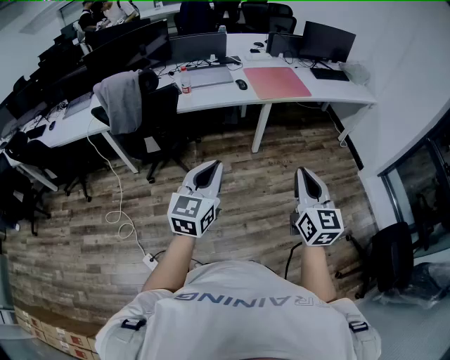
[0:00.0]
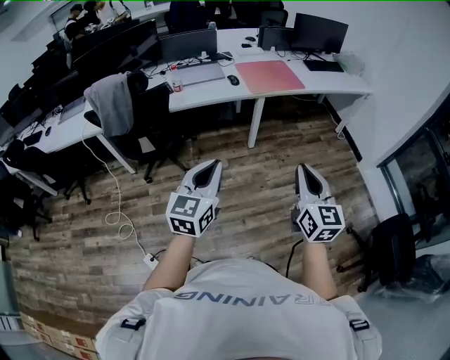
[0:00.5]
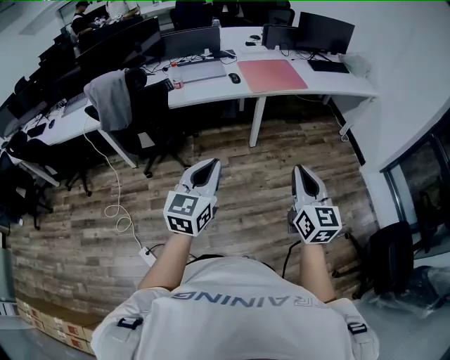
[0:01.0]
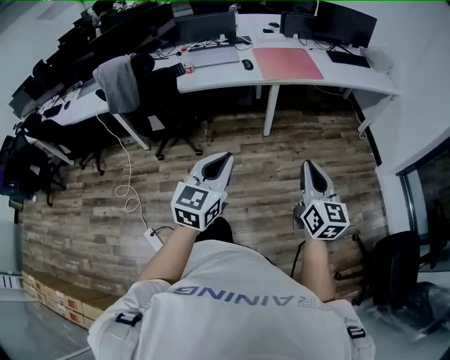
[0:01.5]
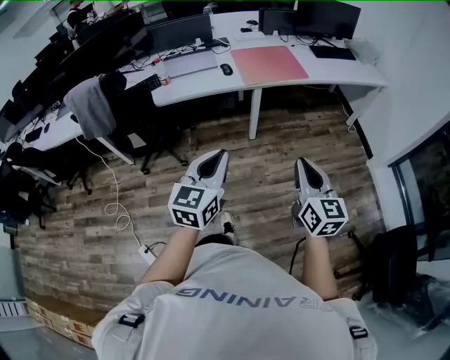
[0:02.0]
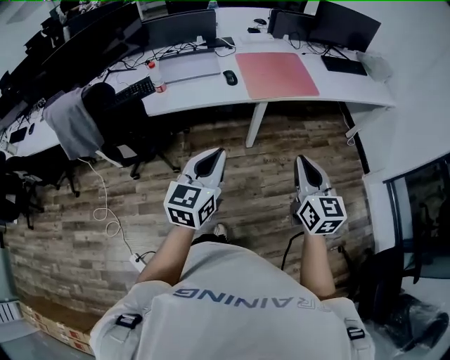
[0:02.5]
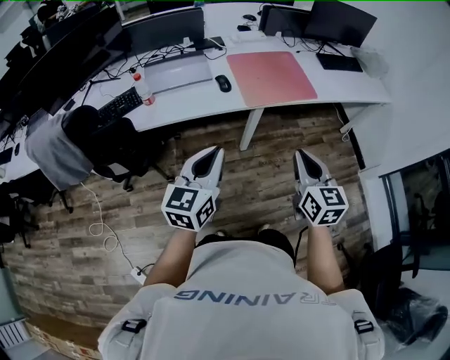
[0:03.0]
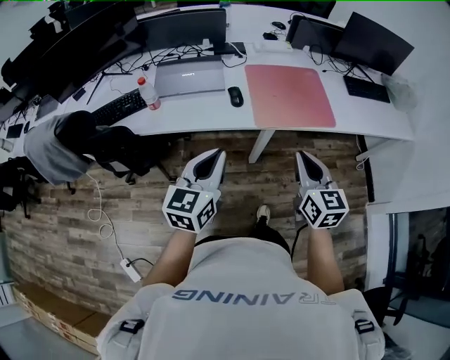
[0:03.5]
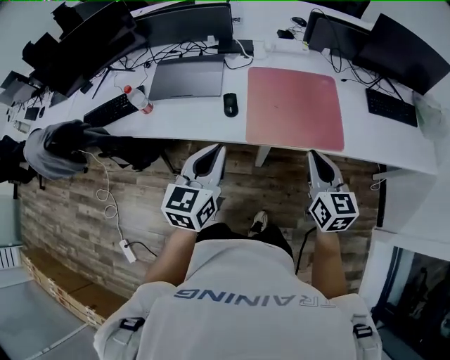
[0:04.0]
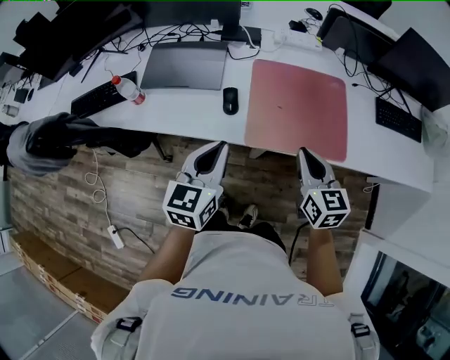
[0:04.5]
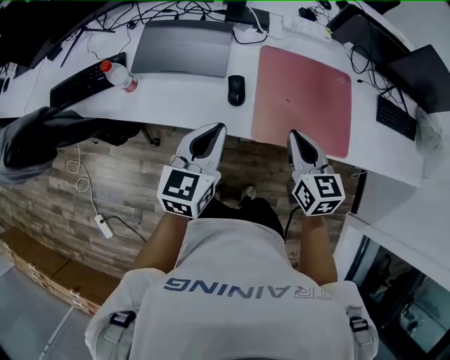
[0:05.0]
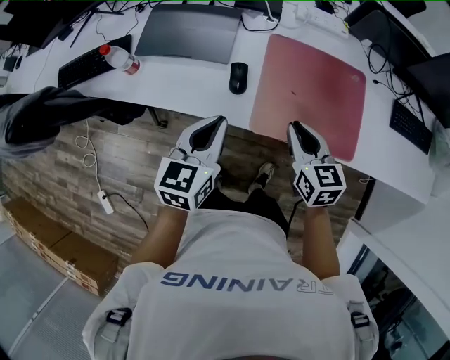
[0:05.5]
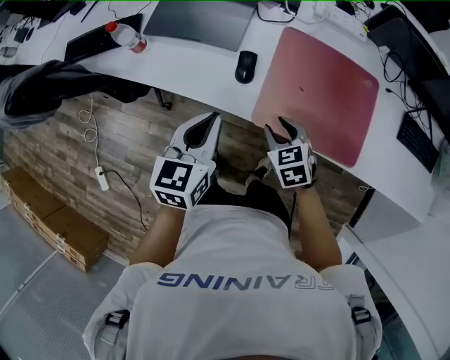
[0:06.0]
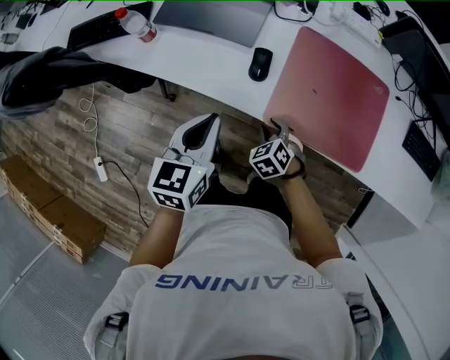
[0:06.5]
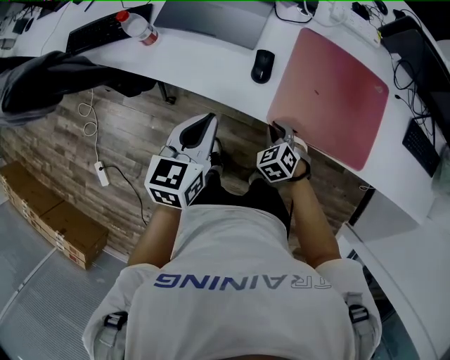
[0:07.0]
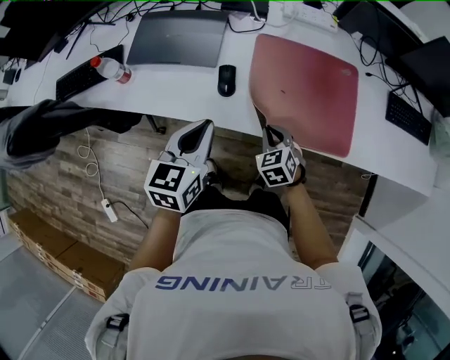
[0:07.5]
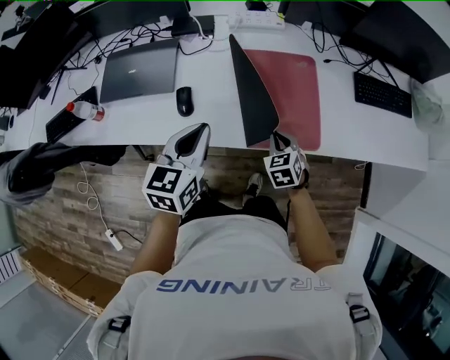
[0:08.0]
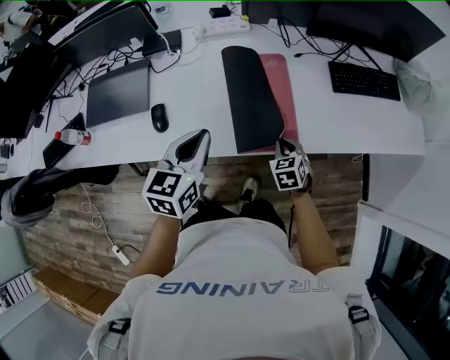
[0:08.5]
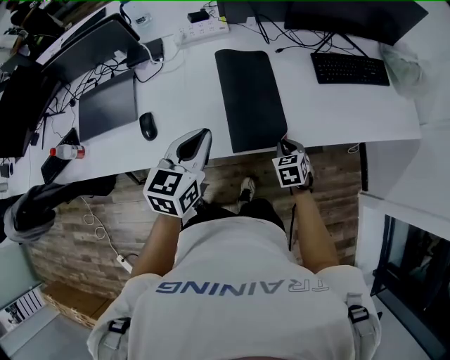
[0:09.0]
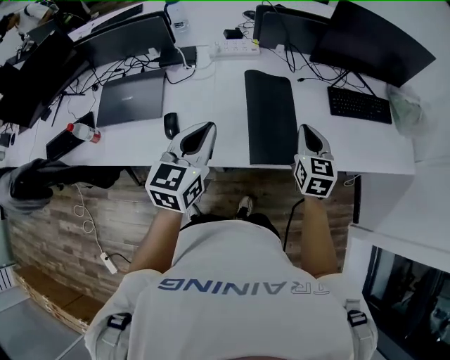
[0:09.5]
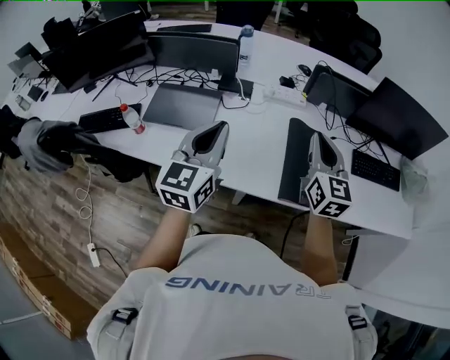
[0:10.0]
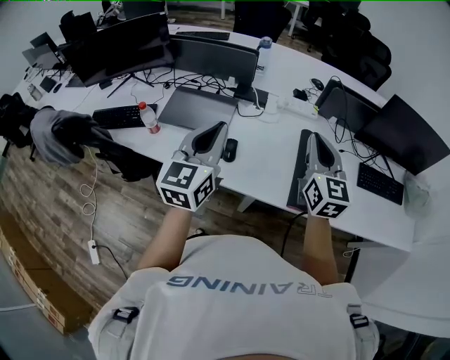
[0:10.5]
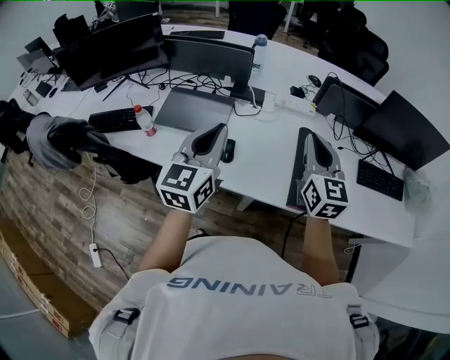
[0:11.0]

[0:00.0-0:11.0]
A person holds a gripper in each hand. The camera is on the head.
0:00.0 to 0:02.0: The grippers both shift to the right and forward by about 20 cm.
0:02.0 to 0:03.5: The two grippers go some 40 cm forward.
0:03.5 to 0:05.5: Both grippers move forward and downward, some 25 cm. The right gripper rotates some 30 degrees.
0:05.5 to 0:07.5: The right gripper is displaced downward by approximately 15 cm, rotates about 30 degrees, and opens and closes again.
0:07.5 to 0:09.0: The two grippers go some 30 cm to the right. The right gripper swivels about 30 degrees.
0:09.0 to 0:11.0: The right gripper moves upward and to the left, approximately 50 cm, and angles its fingers upward, by about 50 degrees. The left gripper moves to the left and upward, some 30 cm, and rotates roughly 30 degrees.

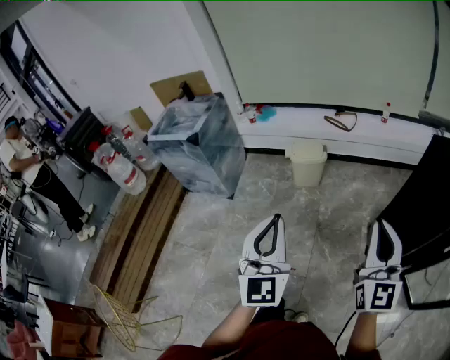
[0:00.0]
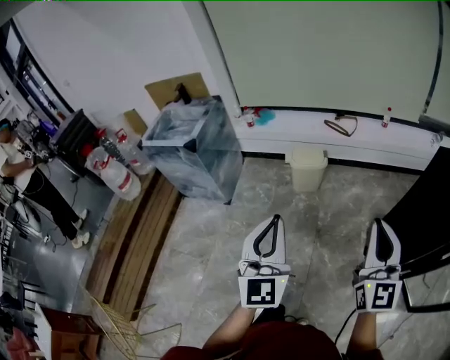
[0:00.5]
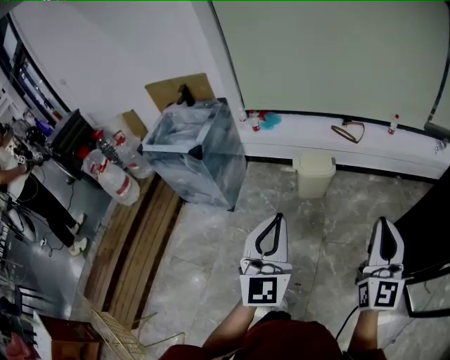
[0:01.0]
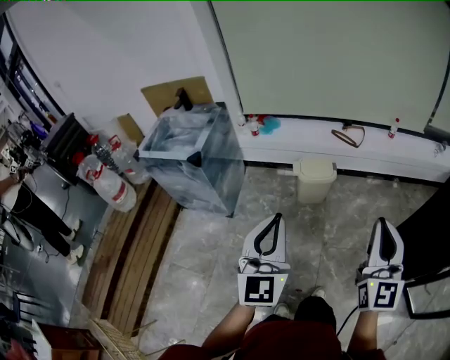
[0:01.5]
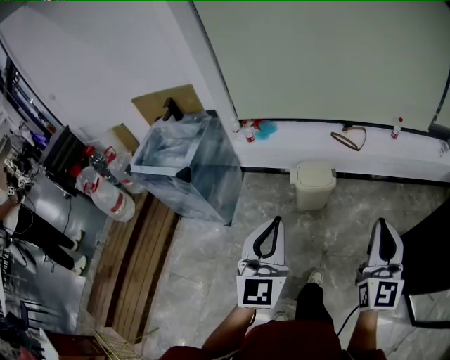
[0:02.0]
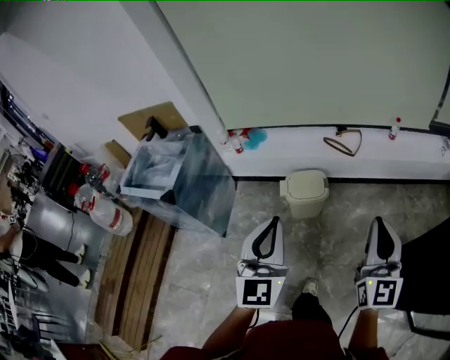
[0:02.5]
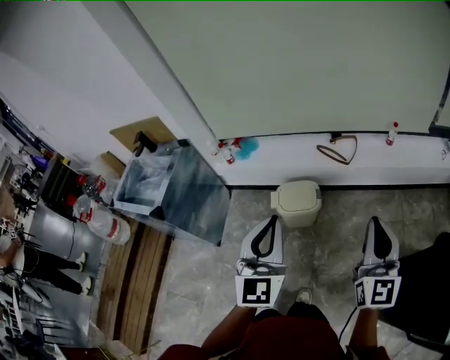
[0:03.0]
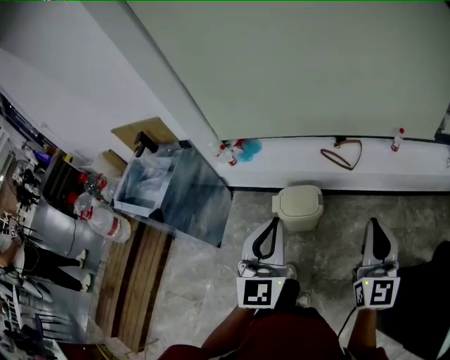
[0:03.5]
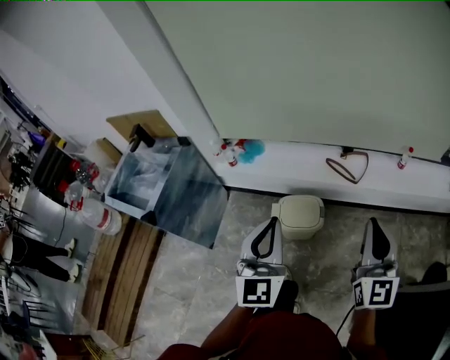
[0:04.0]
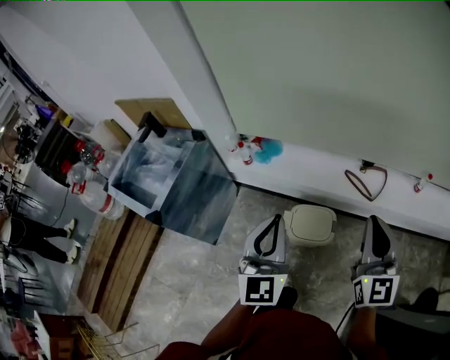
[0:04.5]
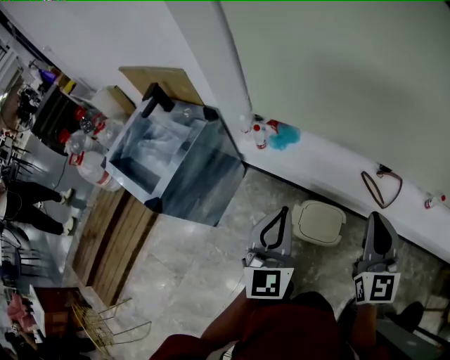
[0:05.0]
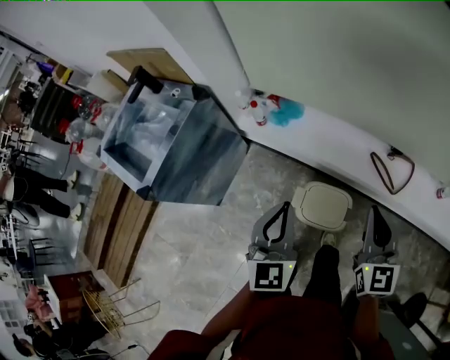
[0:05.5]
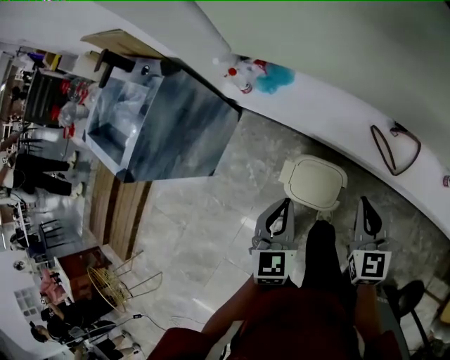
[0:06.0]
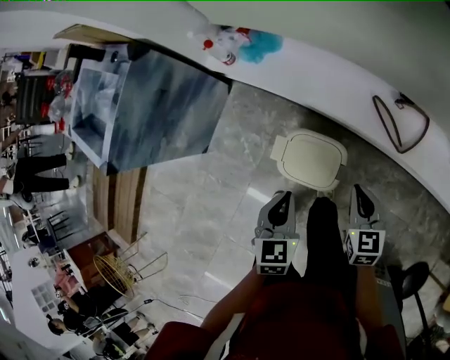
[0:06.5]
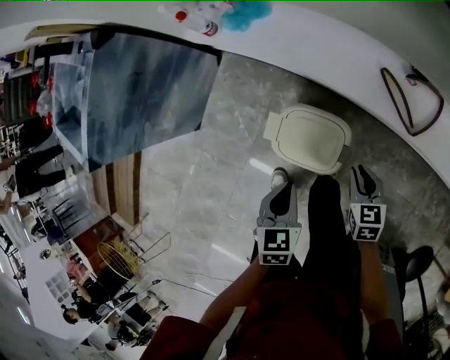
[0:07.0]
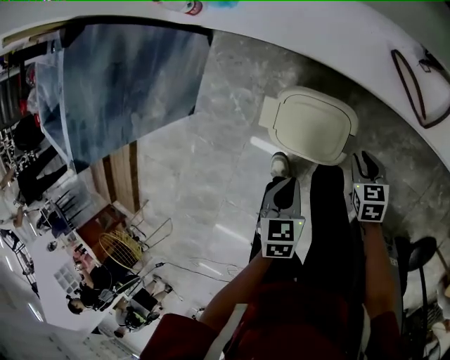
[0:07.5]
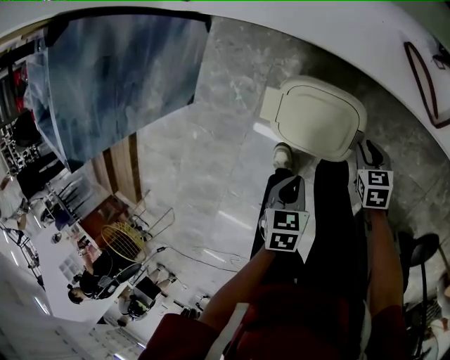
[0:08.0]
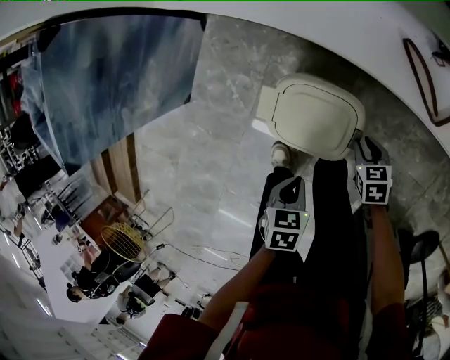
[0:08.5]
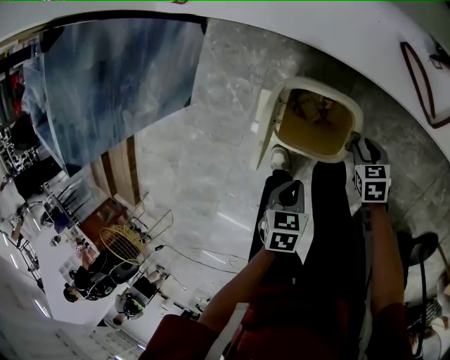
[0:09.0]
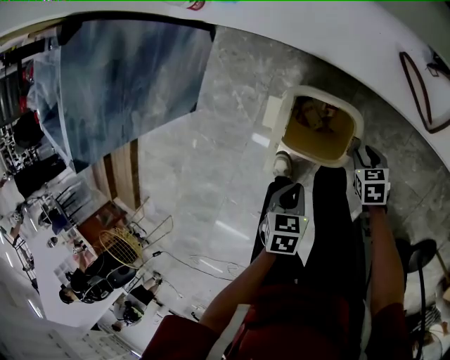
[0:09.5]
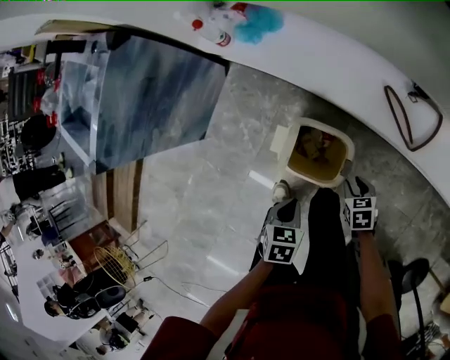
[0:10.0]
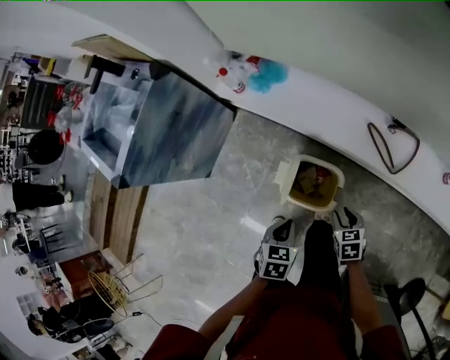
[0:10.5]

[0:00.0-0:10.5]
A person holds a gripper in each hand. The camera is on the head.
0:00.0 to 0:02.0: The two grippers go some 25 cm forward.
0:02.0 to 0:04.0: Both grippers travel together forward, approximately 30 cm.
0:04.0 to 0:06.5: Both grippers move downward and forward, some 40 cm. The right gripper tips its fingers downward by some 40 degrees; the left gripper points its fingers approximately 40 degrees further downward.
0:06.5 to 0:08.5: The left gripper heads downward and backward, covering some 25 cm, and points its fingers roughly 30 degrees further downward, while the right gripper travels downward by roughly 30 cm, turns by approximately 30 degrees, and opens its fingers.
0:08.5 to 0:10.5: The two grippers go roughly 20 cm upward.

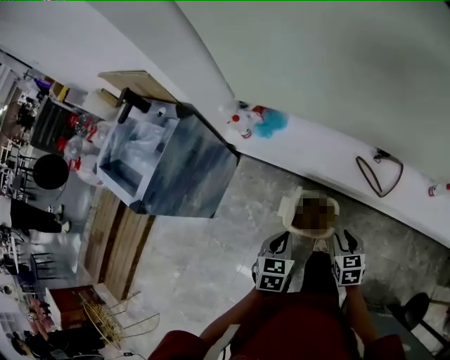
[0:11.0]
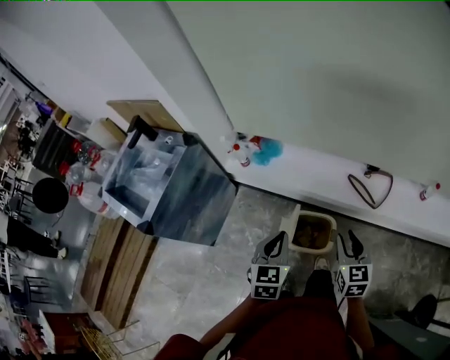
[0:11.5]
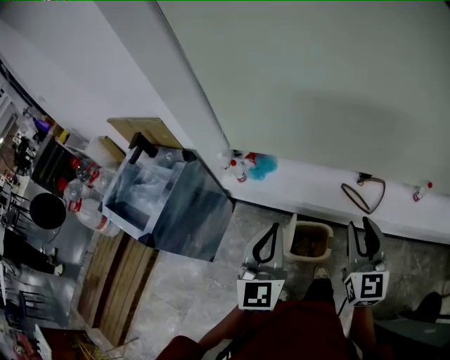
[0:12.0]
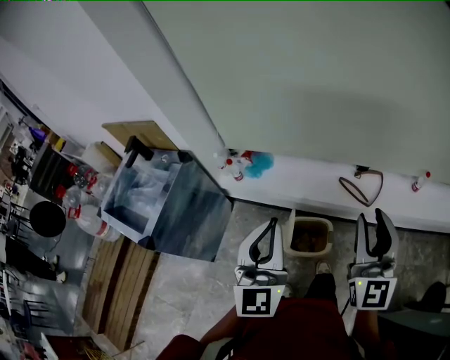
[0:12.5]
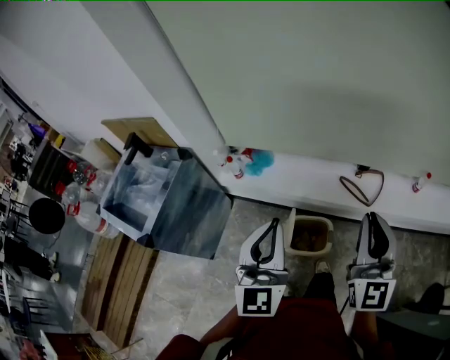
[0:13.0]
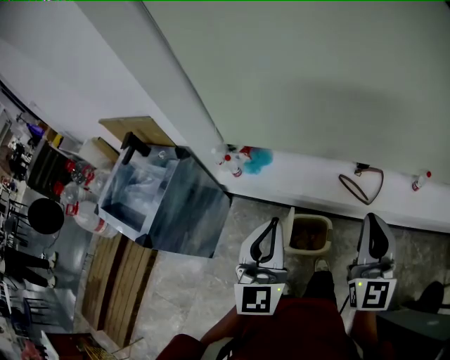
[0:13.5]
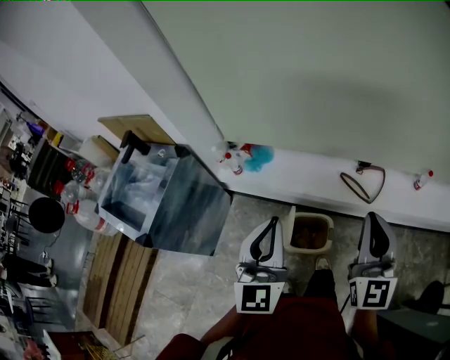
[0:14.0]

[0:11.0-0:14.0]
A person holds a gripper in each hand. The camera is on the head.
0:11.0 to 0:12.5: The two grippers go some 35 cm upward. The right gripper tips its fingers upward by approximately 60 degrees; the left gripper tilts its fingers some 50 degrees upward.
0:12.5 to 0:14.0: The right gripper closes.

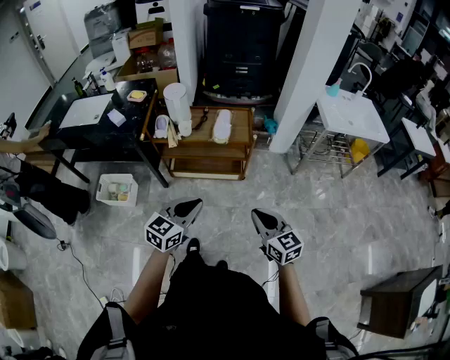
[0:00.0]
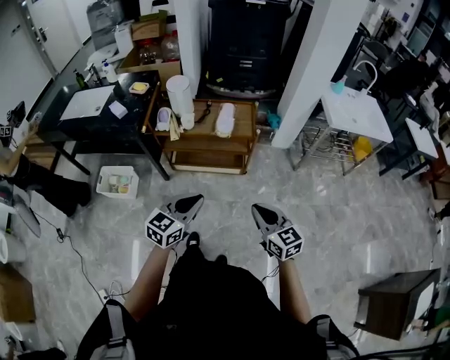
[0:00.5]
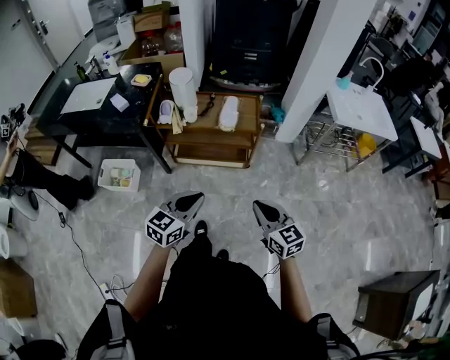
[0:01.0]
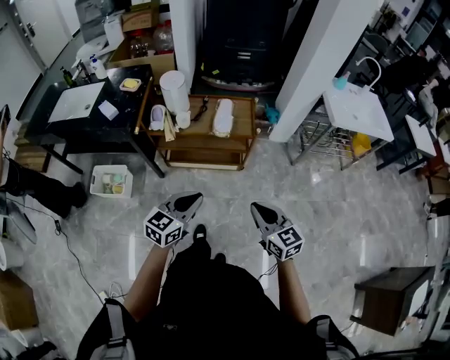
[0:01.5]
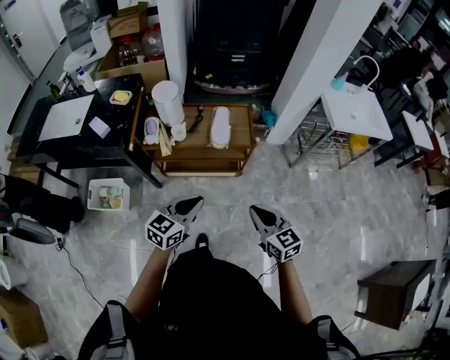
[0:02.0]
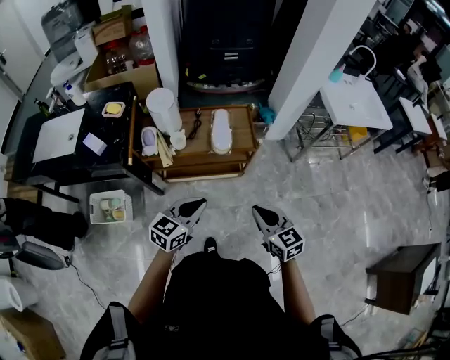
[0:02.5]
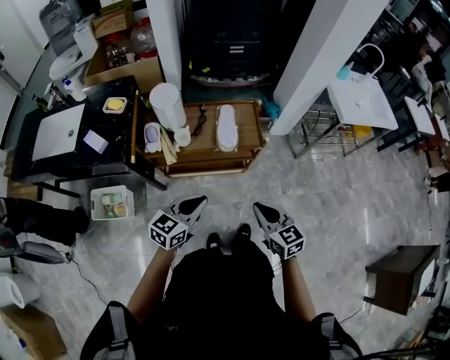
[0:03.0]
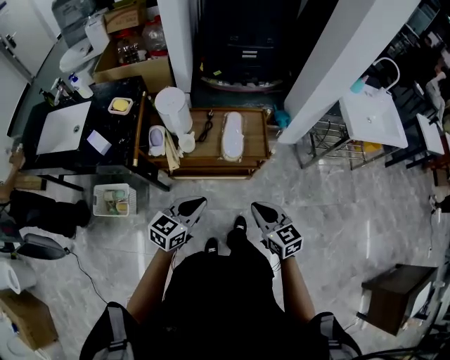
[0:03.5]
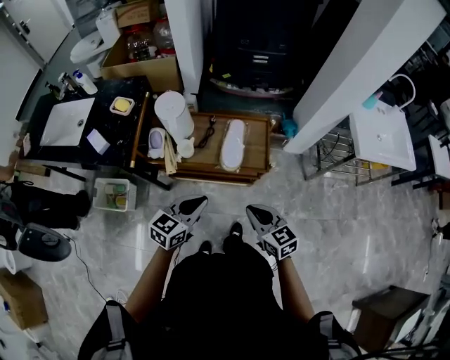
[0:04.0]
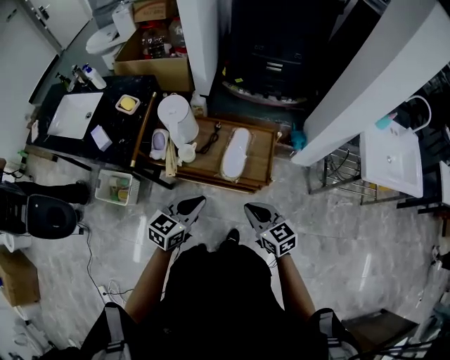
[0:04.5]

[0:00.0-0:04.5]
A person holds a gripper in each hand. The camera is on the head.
0:00.0 to 0:02.0: The left gripper heads forward, covering about 15 cm; the right gripper moves forward and to the left, roughly 15 cm.
0:02.0 to 0:04.5: The two grippers go roughly 20 cm forward.
